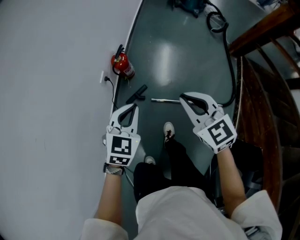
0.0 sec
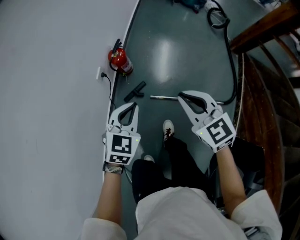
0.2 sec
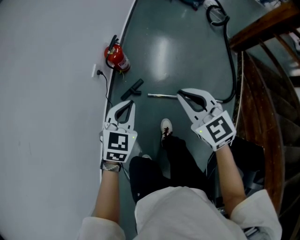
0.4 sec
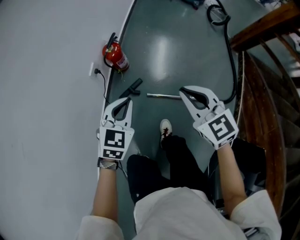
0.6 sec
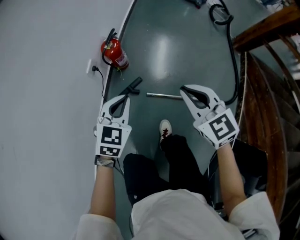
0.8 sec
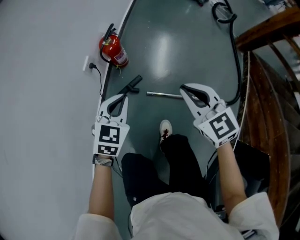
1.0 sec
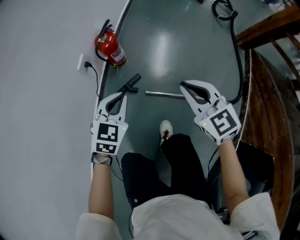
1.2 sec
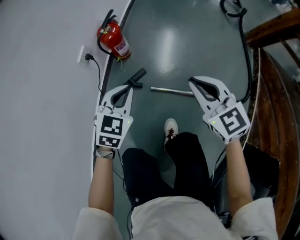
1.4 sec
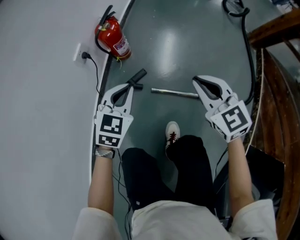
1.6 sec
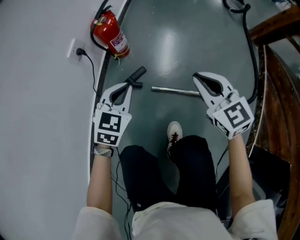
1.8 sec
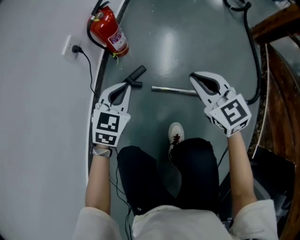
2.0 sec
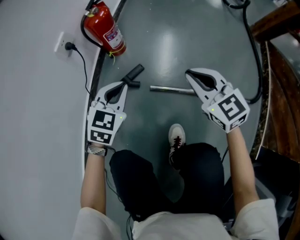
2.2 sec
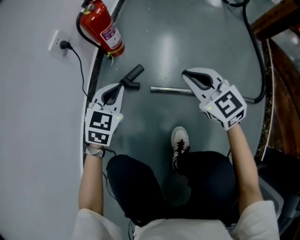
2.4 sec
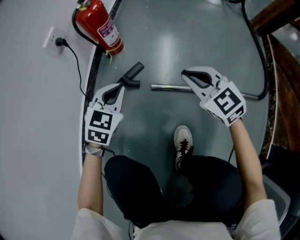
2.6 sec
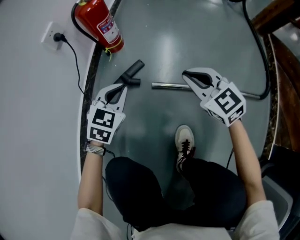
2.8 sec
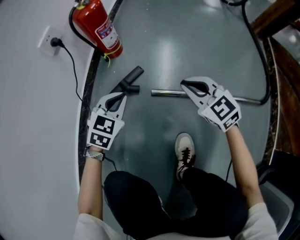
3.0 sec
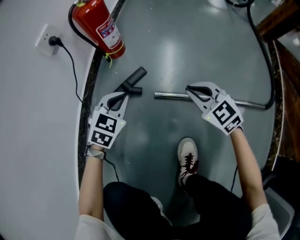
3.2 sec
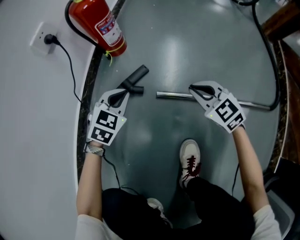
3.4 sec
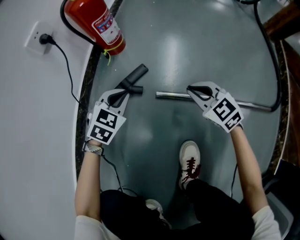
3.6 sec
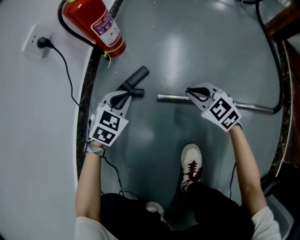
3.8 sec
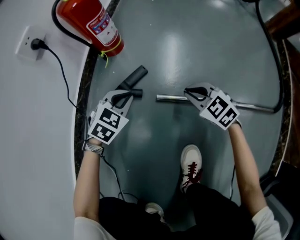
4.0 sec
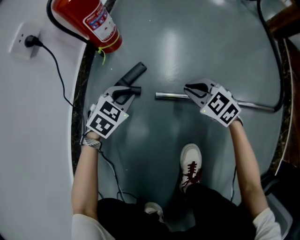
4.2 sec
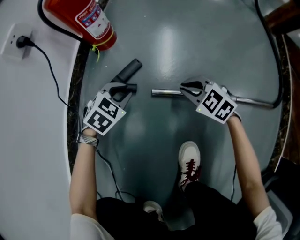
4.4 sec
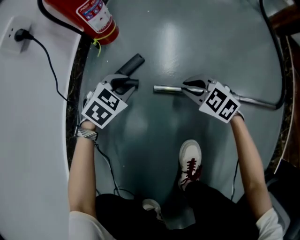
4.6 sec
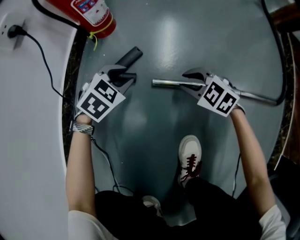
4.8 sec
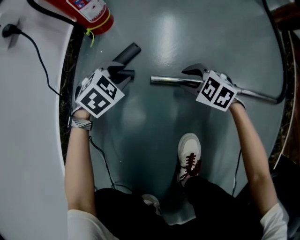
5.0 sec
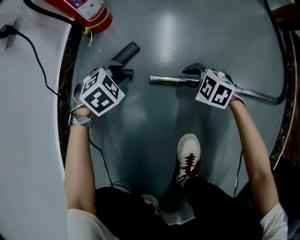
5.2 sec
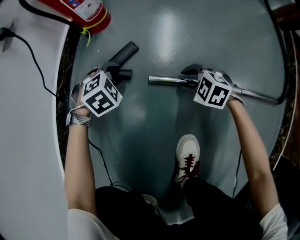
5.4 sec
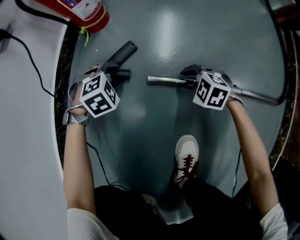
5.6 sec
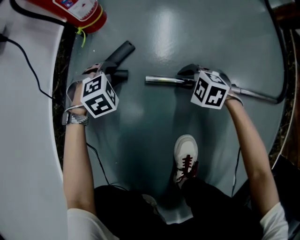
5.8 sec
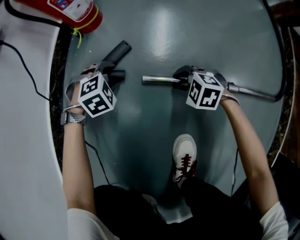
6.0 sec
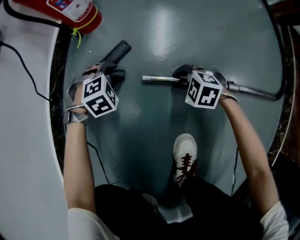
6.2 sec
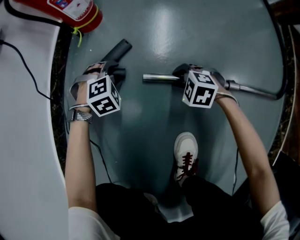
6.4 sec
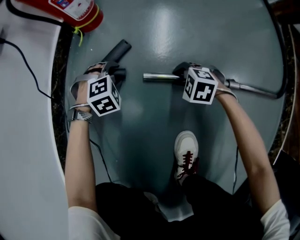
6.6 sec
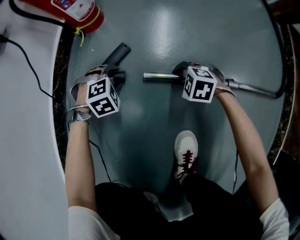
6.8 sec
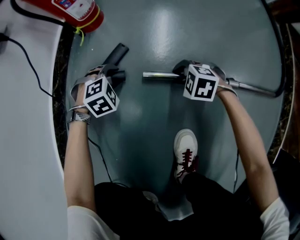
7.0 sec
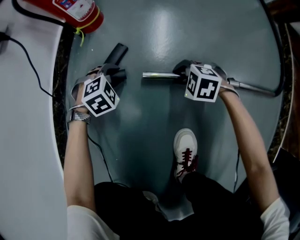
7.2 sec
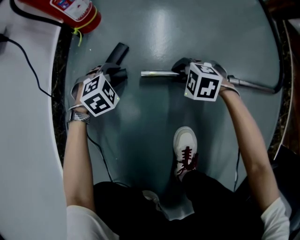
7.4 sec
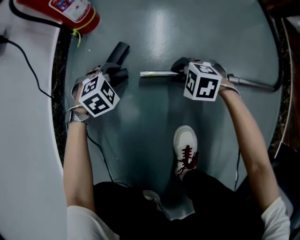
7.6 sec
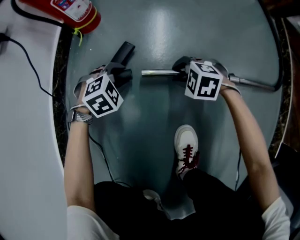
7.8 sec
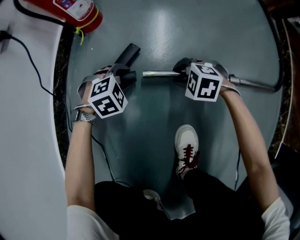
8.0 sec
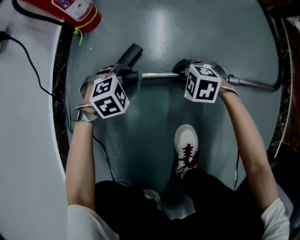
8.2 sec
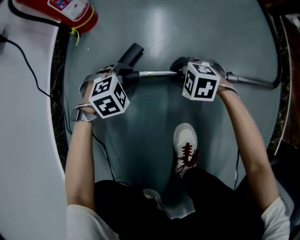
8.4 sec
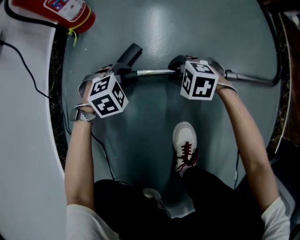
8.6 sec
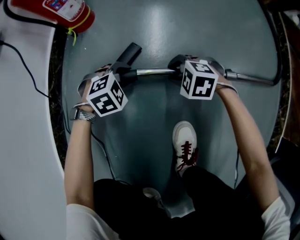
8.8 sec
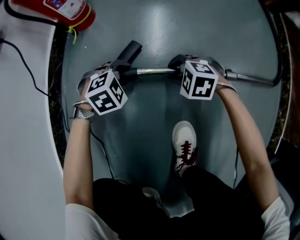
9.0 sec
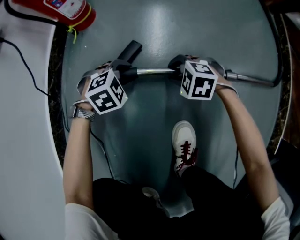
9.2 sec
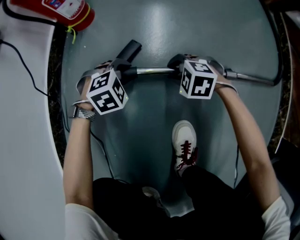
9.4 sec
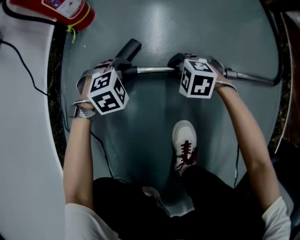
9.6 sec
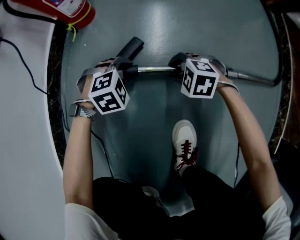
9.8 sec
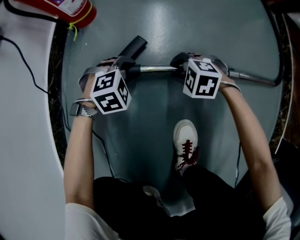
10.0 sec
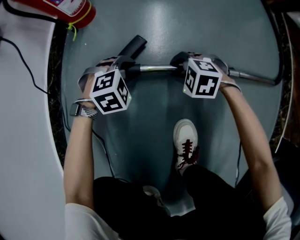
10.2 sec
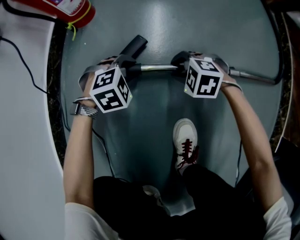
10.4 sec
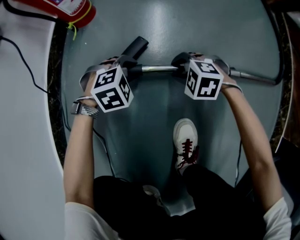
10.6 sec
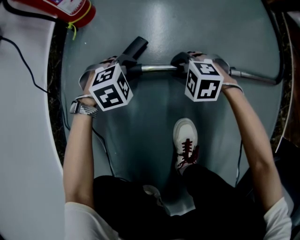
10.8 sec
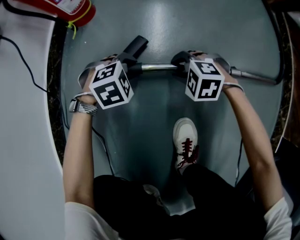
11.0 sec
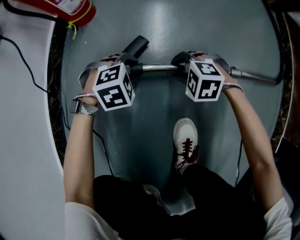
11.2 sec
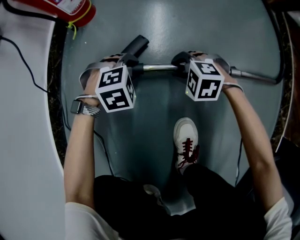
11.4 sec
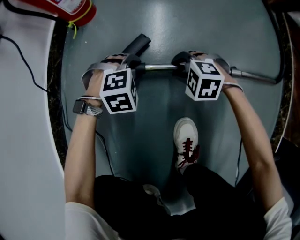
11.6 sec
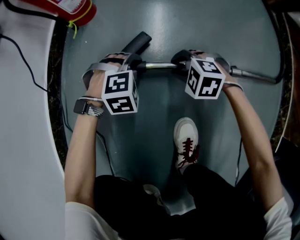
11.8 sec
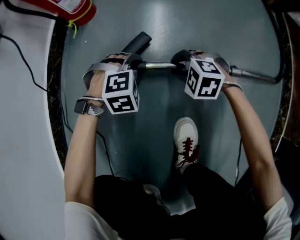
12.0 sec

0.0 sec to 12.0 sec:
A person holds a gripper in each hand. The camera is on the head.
0.0 sec to 1.6 sec: The two grippers go some 30 cm downward.
1.6 sec to 3.0 sec: The two grippers go about 30 cm downward.
3.0 sec to 4.4 sec: Both grippers move downward, approximately 15 cm. The left gripper changes its angle by roughly 20 degrees. Meanwhile the right gripper turns by approximately 20 degrees.
4.4 sec to 6.0 sec: The two grippers go about 10 cm downward. The right gripper rotates roughly 20 degrees, and opens up, while the left gripper swivels roughly 30 degrees, and opens up.
6.0 sec to 7.6 sec: The grippers stay close to where they were, moving slightly.
7.6 sec to 9.0 sec: The left gripper changes place by approximately 5 cm.
9.0 sec to 12.0 sec: The grippers make only small movements.

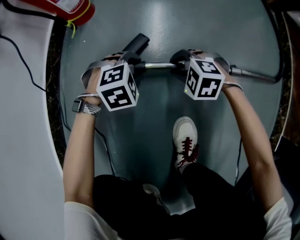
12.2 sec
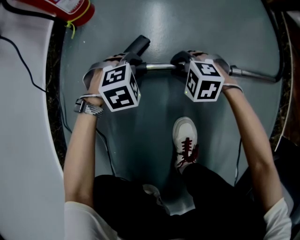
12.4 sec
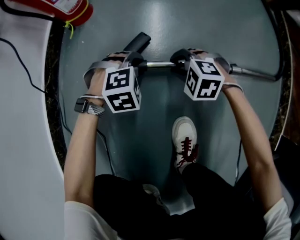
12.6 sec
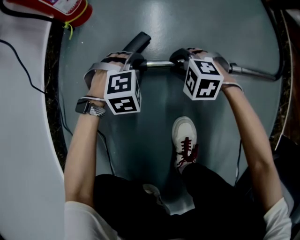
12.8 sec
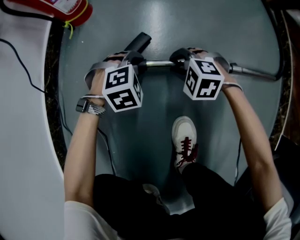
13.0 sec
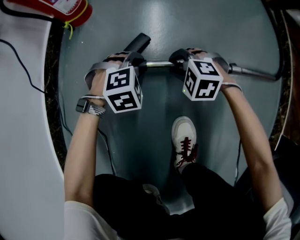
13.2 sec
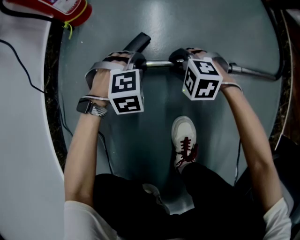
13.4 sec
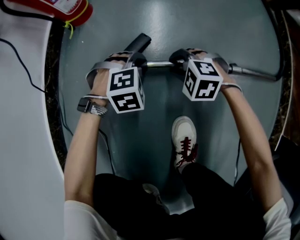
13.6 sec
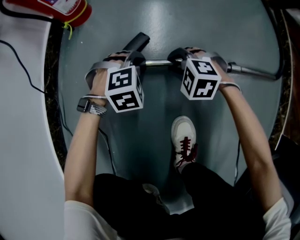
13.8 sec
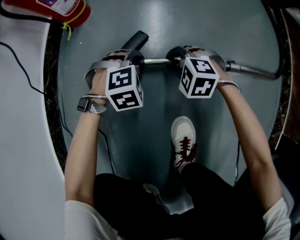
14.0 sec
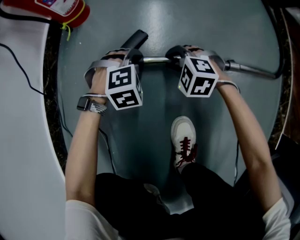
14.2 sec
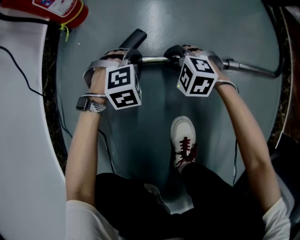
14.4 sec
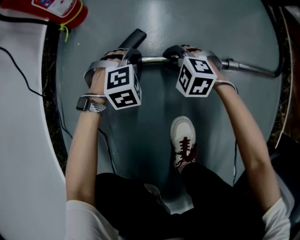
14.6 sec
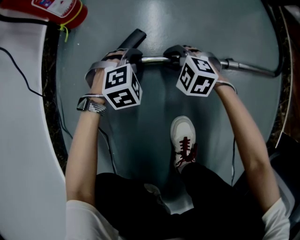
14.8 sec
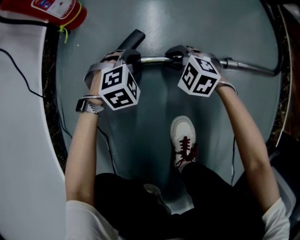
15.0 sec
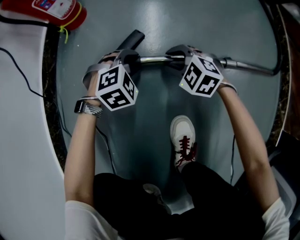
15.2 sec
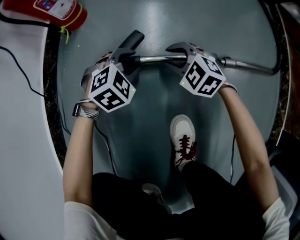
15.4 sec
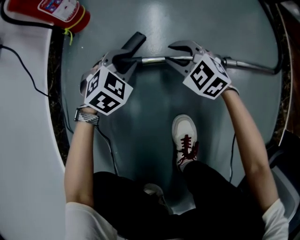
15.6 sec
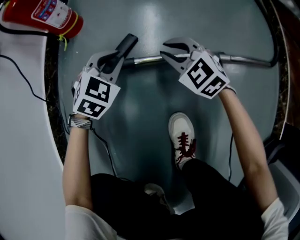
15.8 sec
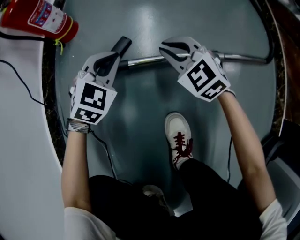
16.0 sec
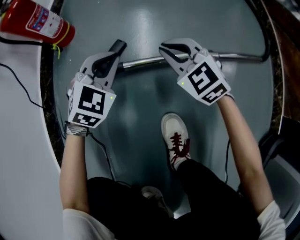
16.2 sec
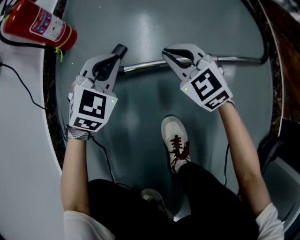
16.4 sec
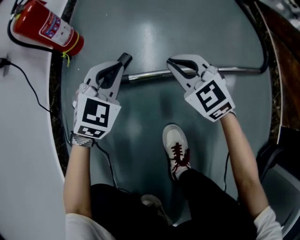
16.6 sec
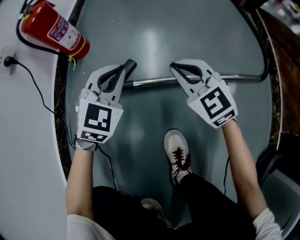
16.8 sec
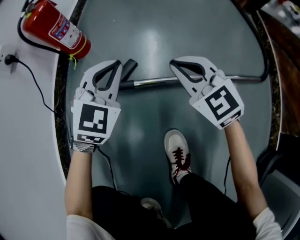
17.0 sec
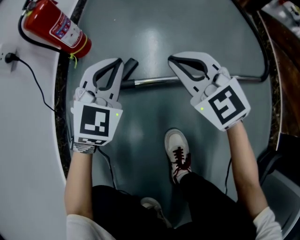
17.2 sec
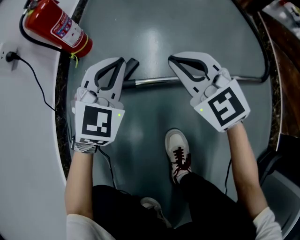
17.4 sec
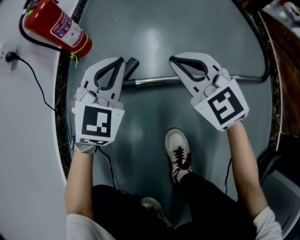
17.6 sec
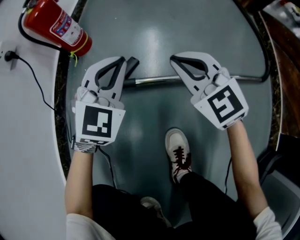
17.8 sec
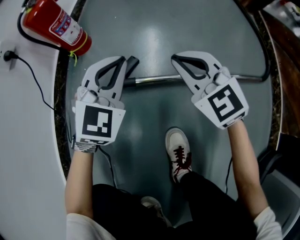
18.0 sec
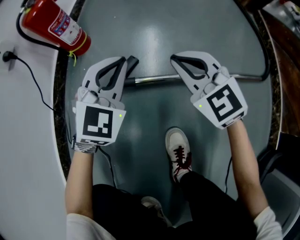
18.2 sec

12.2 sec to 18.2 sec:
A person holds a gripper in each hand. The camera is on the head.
12.2 sec to 15.2 sec: There are only small adjustments of the grippers.
15.2 sec to 16.6 sec: The grippers both shift upward by roughly 15 cm. The right gripper rotates about 30 degrees, and closes up, while the left gripper swivels some 30 degrees, and closes.
16.6 sec to 18.2 sec: Both grippers move upward, some 5 cm.

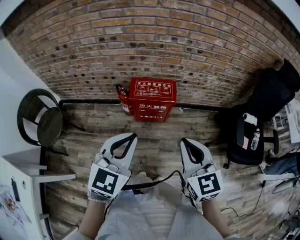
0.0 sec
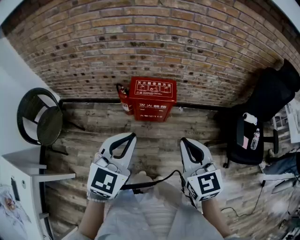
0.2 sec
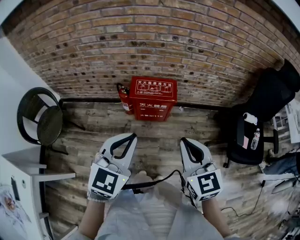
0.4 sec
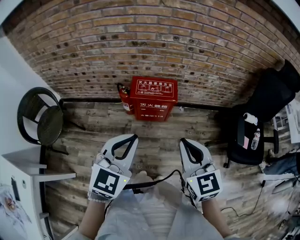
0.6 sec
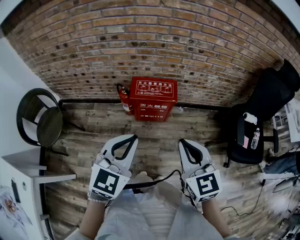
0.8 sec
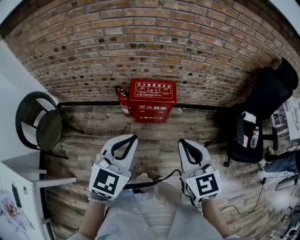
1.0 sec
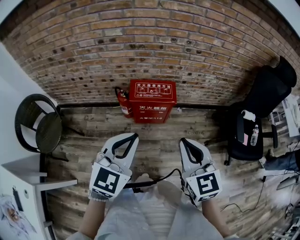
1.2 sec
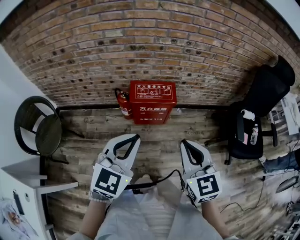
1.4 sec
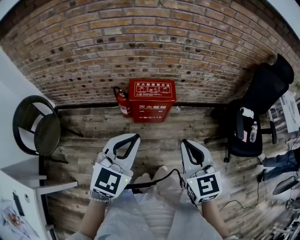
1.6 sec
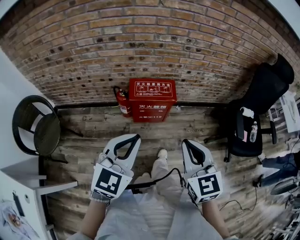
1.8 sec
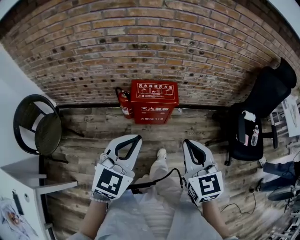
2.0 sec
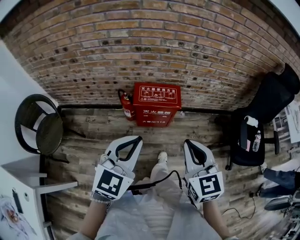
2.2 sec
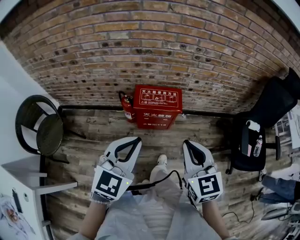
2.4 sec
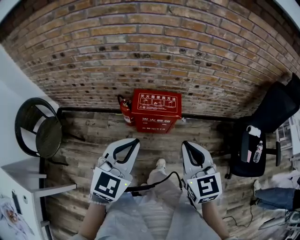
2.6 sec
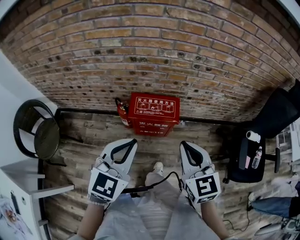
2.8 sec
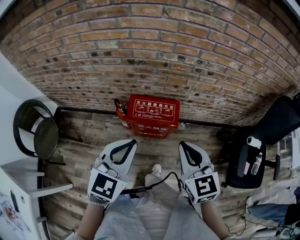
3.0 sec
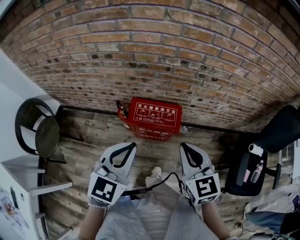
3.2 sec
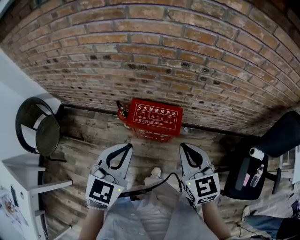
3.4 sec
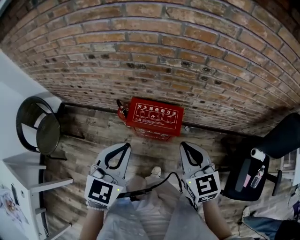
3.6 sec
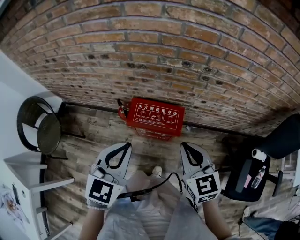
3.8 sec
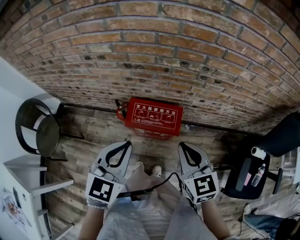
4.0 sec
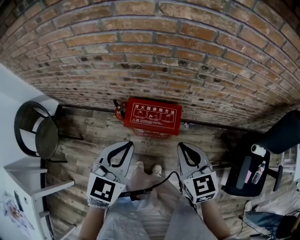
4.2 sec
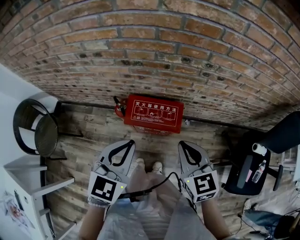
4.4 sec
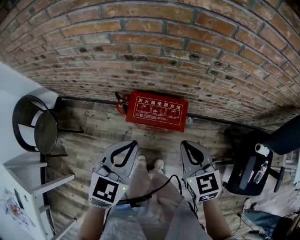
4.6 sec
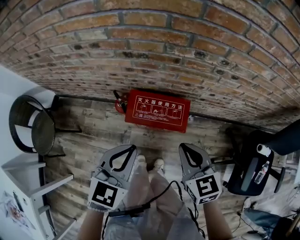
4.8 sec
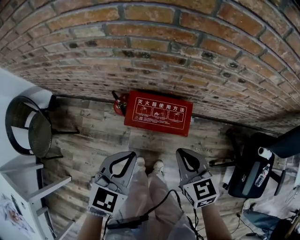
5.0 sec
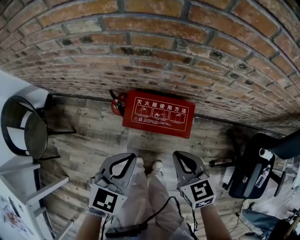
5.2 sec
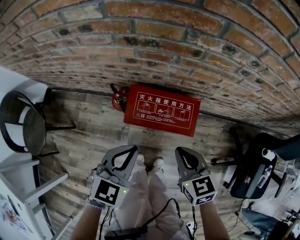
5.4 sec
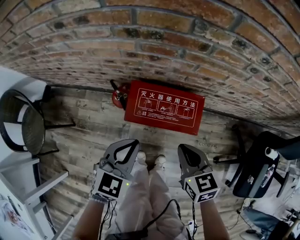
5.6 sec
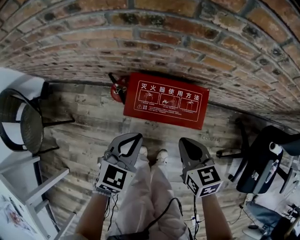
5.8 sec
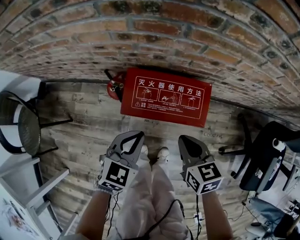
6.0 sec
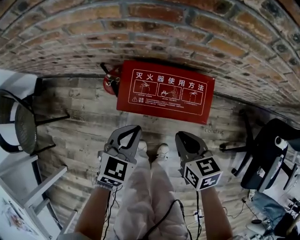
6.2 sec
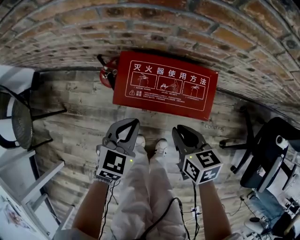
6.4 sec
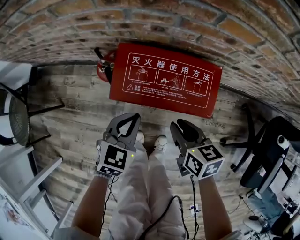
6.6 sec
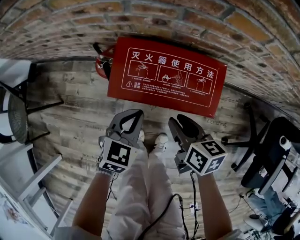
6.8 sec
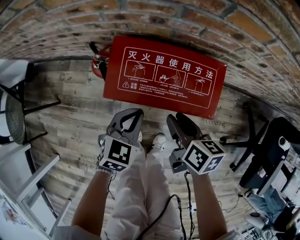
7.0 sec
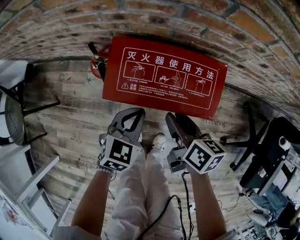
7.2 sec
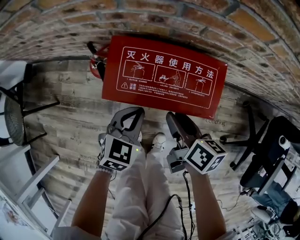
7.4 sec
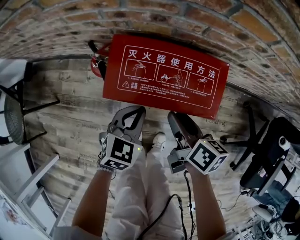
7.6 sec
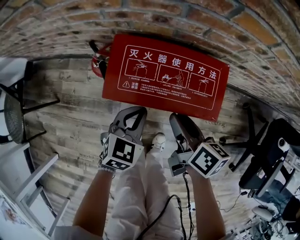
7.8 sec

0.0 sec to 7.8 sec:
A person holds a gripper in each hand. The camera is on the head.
0.0 sec to 1.6 sec: The grippers move only a little.
1.6 sec to 3.2 sec: Both grippers travel together forward, about 20 cm.
3.2 sec to 4.6 sec: The right gripper moves downward and forward, about 10 cm, while the left gripper heads forward and downward, covering approximately 10 cm.
4.6 sec to 6.2 sec: Both grippers travel together downward, approximately 30 cm. The right gripper swivels some 30 degrees.
6.2 sec to 7.8 sec: The right gripper shifts approximately 5 cm downward, turns by about 40 degrees, and opens up. The left gripper travels downward by roughly 10 cm.
